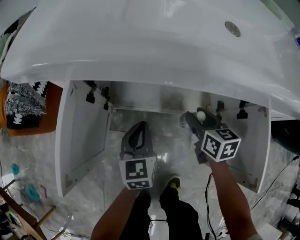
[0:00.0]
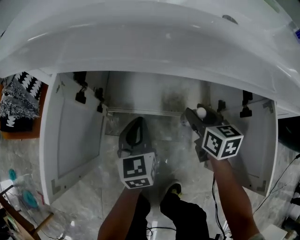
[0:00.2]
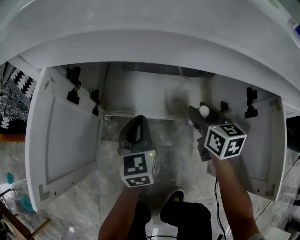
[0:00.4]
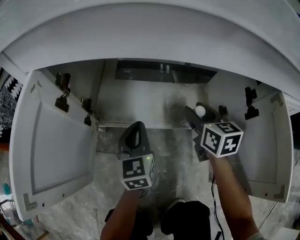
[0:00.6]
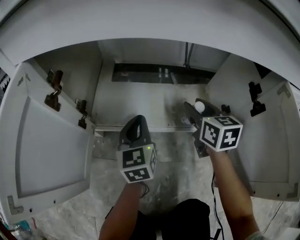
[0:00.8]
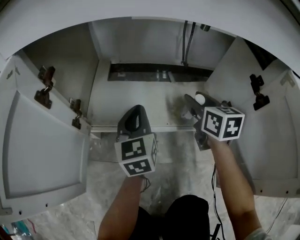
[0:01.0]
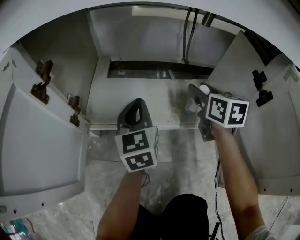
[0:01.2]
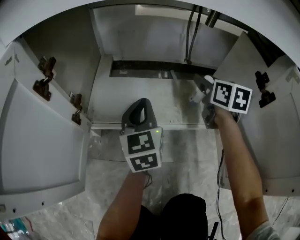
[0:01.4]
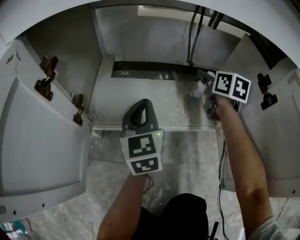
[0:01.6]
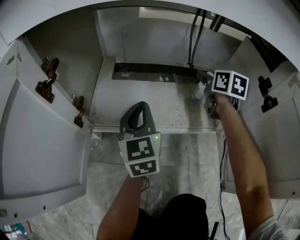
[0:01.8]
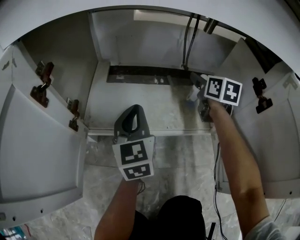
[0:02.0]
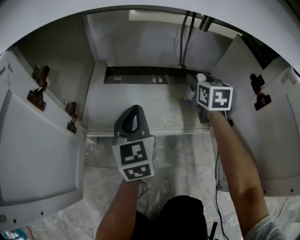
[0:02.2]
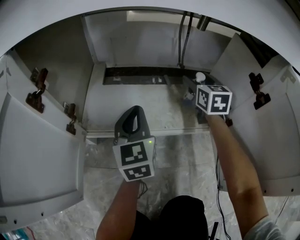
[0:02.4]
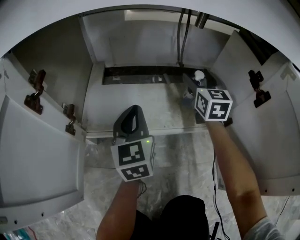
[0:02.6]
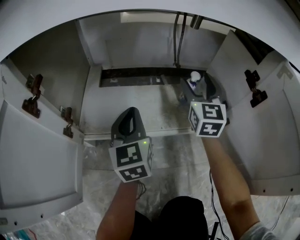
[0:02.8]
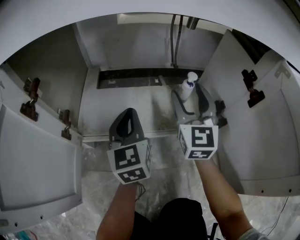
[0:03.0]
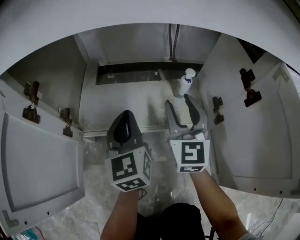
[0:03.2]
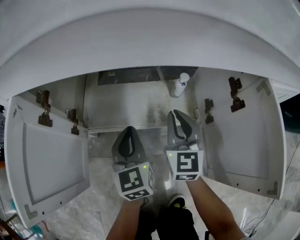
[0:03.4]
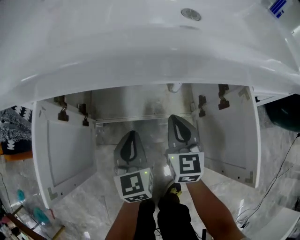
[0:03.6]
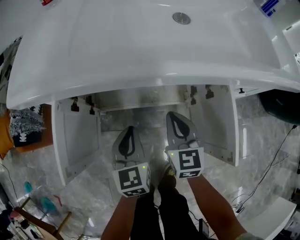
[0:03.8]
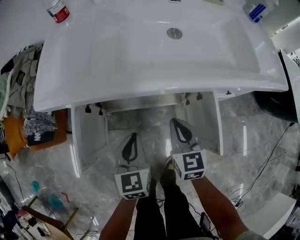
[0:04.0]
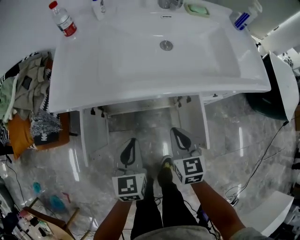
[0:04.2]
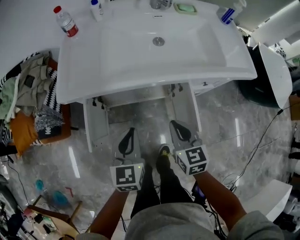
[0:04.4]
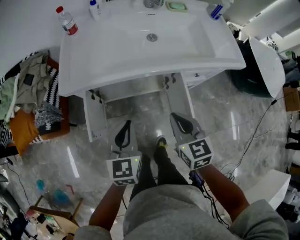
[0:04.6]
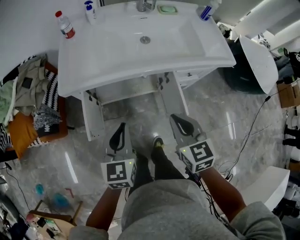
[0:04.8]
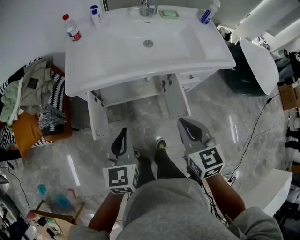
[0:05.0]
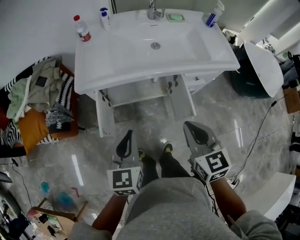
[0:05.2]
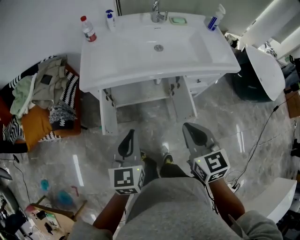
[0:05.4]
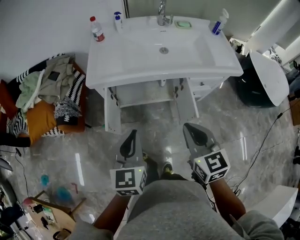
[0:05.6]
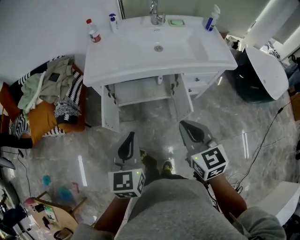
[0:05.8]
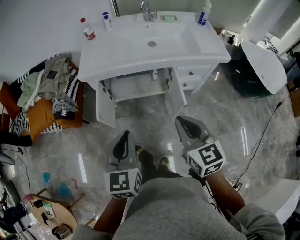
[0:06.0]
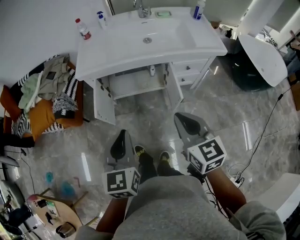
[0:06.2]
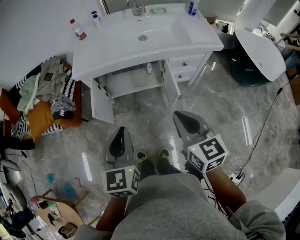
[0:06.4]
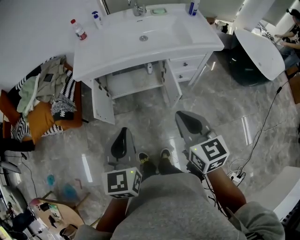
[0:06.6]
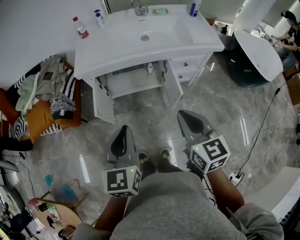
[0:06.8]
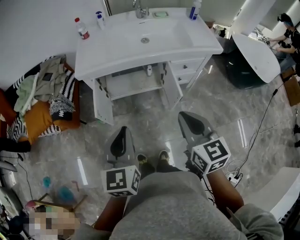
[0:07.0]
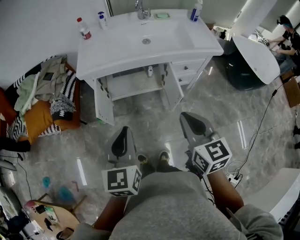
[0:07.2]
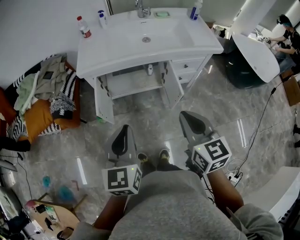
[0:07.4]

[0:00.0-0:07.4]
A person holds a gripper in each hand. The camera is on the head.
0:00.0 to 0:01.4: The right gripper heads forward, to the right and downward, covering some 20 cm; the left gripper shifts roughly 15 cm downward, forward and to the right.
0:01.4 to 0:03.0: The right gripper shifts some 5 cm backward, and rotates roughly 40 degrees.
0:03.0 to 0:04.4: The grippers both shift upward and backward by roughly 50 cm. The right gripper tips its fingers downward by about 30 degrees, and closes up.
0:04.4 to 0:06.0: Both grippers travel together backward and upward, approximately 30 cm.
0:06.0 to 0:07.4: There are only small adjustments of the grippers.

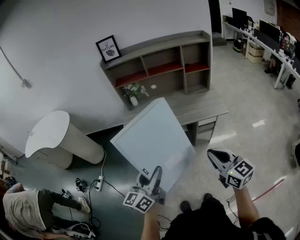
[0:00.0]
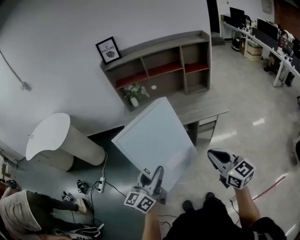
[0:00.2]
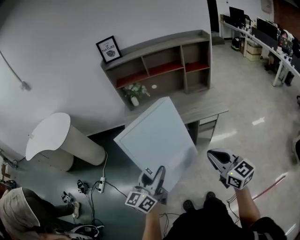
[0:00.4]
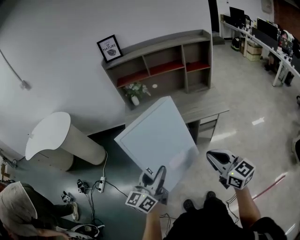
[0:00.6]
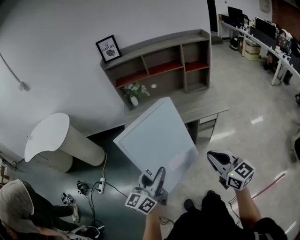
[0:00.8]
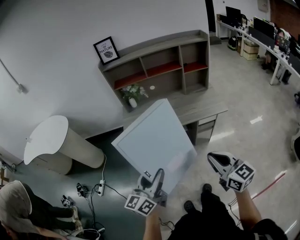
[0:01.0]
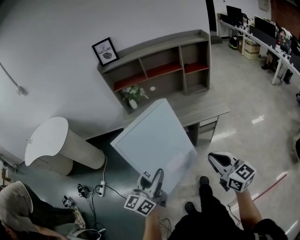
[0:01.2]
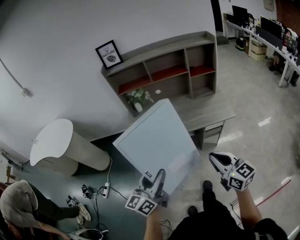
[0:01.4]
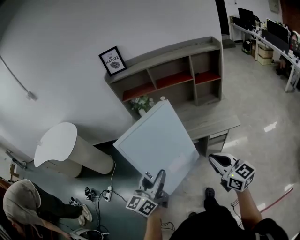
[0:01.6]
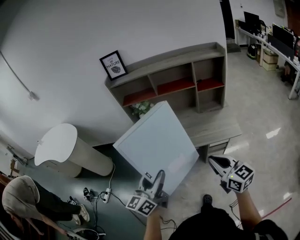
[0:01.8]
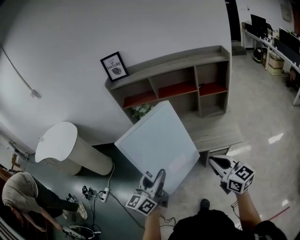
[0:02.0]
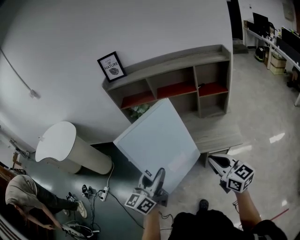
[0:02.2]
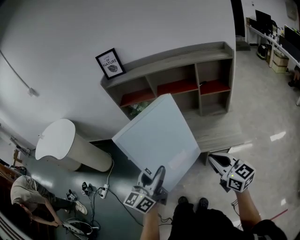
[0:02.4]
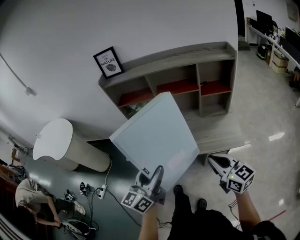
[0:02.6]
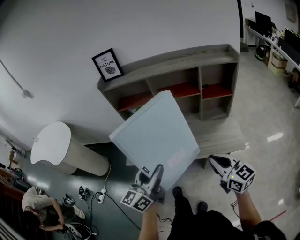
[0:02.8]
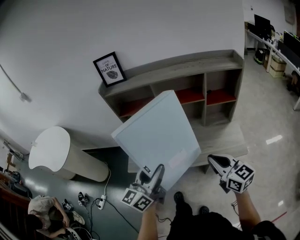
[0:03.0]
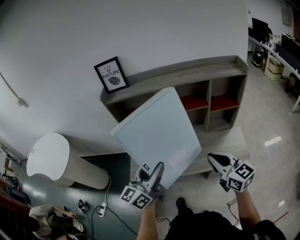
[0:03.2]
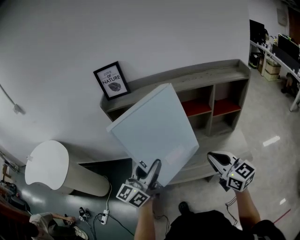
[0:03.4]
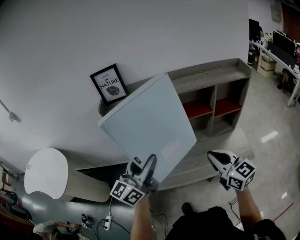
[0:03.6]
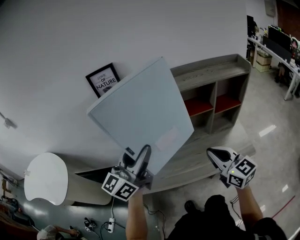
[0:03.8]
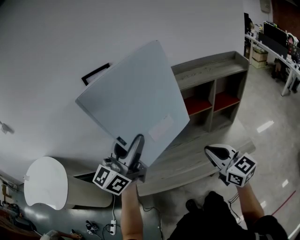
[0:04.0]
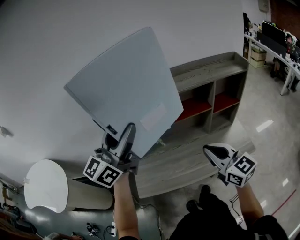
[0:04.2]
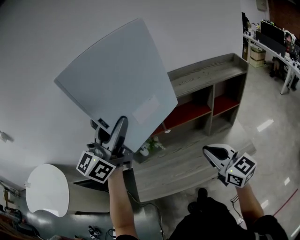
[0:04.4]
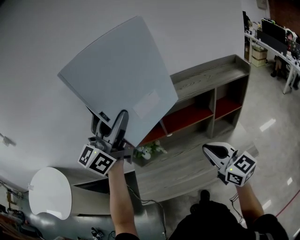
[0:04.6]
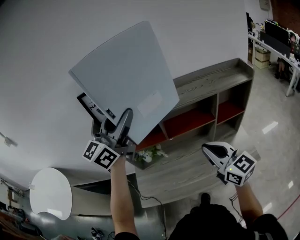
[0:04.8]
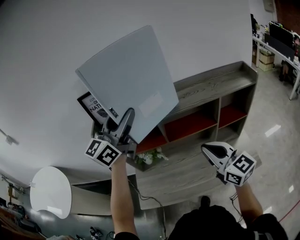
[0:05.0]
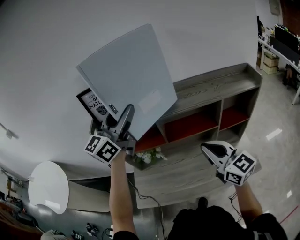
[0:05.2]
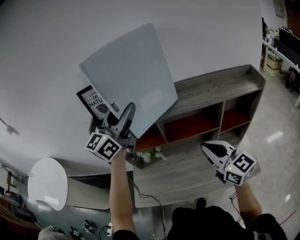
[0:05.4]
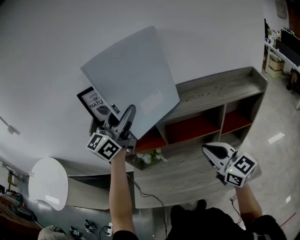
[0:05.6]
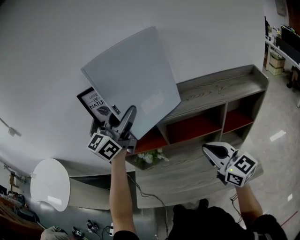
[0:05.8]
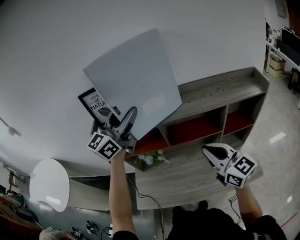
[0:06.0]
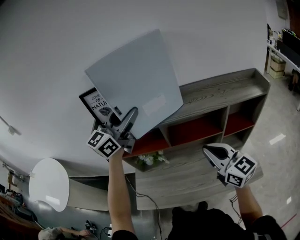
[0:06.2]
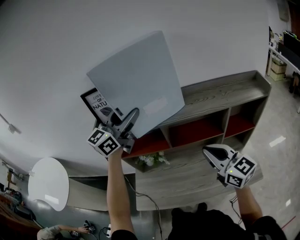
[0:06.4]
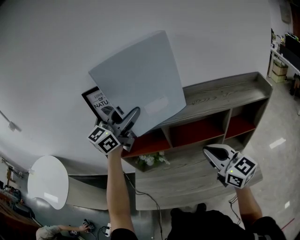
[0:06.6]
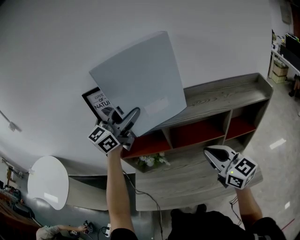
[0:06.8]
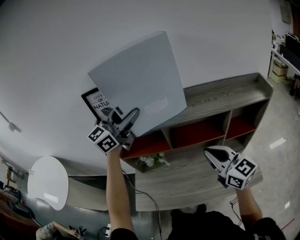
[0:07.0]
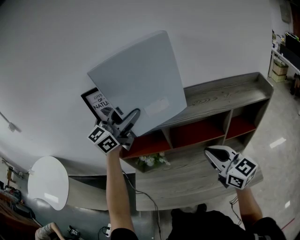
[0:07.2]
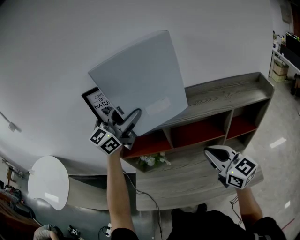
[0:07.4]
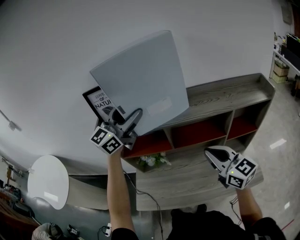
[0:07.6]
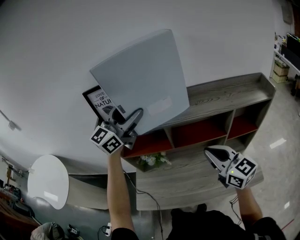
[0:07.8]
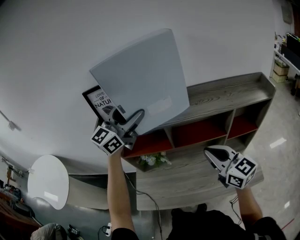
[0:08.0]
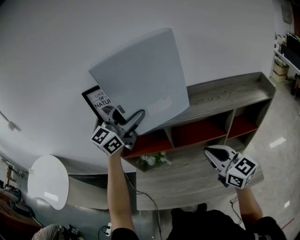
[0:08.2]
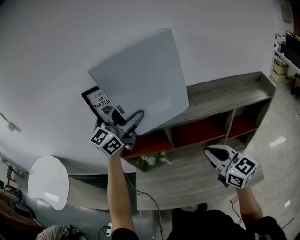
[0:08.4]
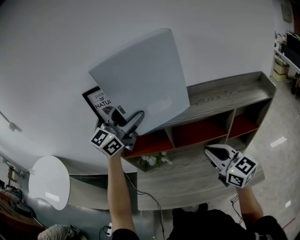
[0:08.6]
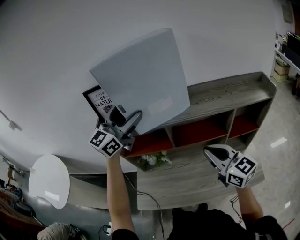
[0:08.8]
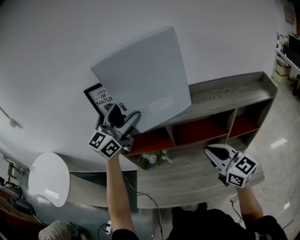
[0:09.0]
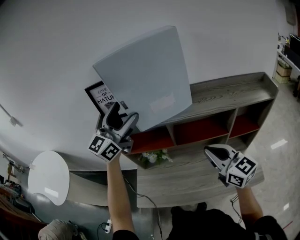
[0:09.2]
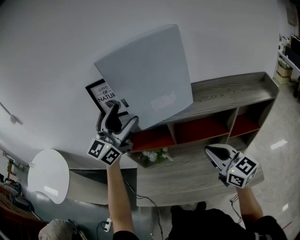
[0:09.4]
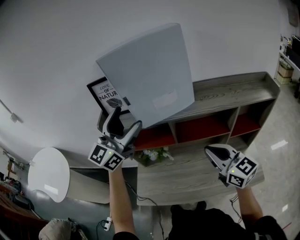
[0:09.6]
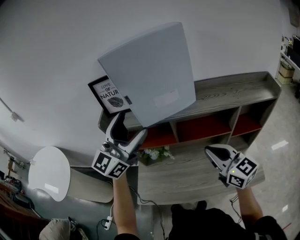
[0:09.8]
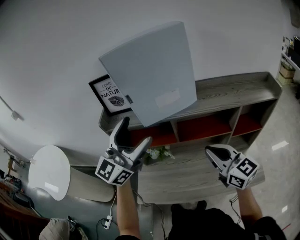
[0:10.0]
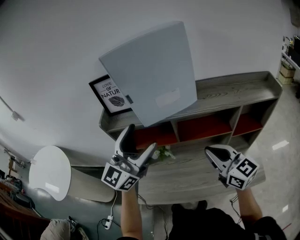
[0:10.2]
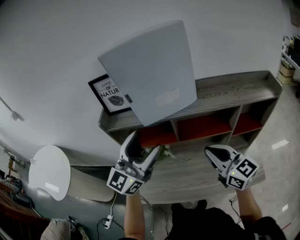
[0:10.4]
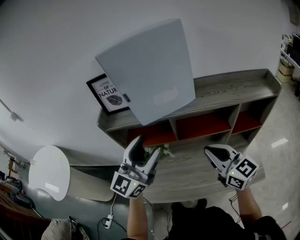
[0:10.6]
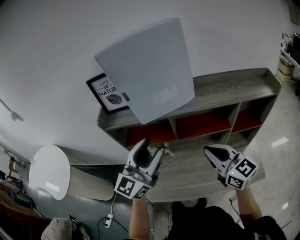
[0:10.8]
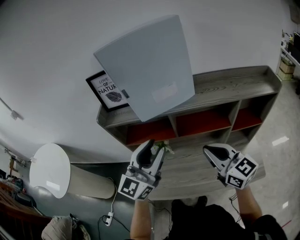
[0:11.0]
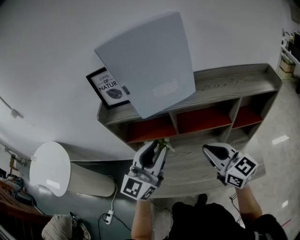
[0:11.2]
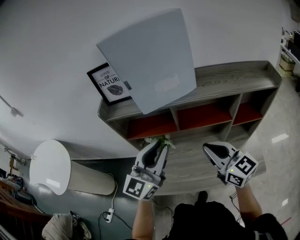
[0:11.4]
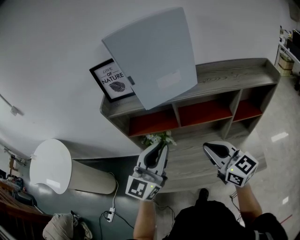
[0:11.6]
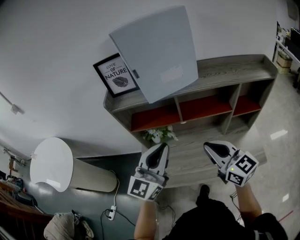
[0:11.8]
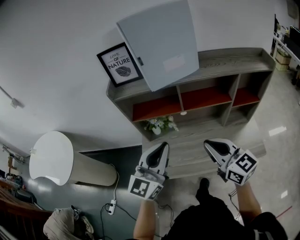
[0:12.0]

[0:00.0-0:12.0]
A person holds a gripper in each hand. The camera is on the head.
0:00.0 to 0:01.6: Both grippers travel together forward, approximately 10 cm.
0:01.6 to 0:03.0: Both grippers travel together forward, about 20 cm.
0:03.0 to 0:04.4: The left gripper travels forward, upward and to the left by about 35 cm, and changes its angle by approximately 30 degrees. Meanwhile the right gripper is displaced forward, to the left and upward by about 20 cm.
0:04.4 to 0:06.0: Both grippers travel together forward, roughly 15 cm.
0:06.0 to 0:09.0: There are only small adjustments of the grippers.
0:09.0 to 0:10.4: The left gripper travels backward and downward by roughly 15 cm.
0:10.4 to 0:12.0: The right gripper moves backward and to the left, roughly 15 cm, while the left gripper heads backward and downward, covering approximately 15 cm, and closes.

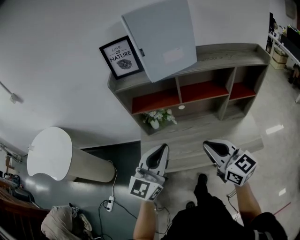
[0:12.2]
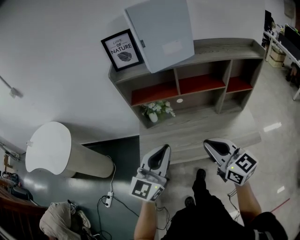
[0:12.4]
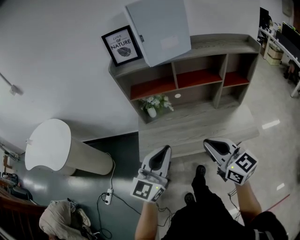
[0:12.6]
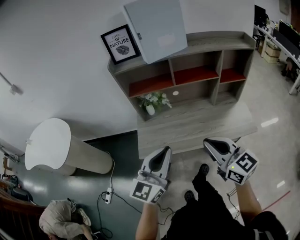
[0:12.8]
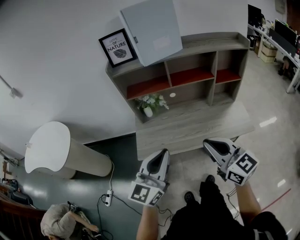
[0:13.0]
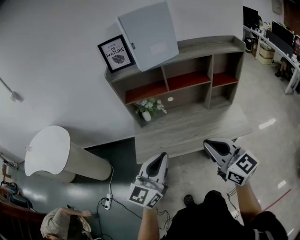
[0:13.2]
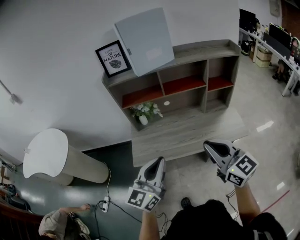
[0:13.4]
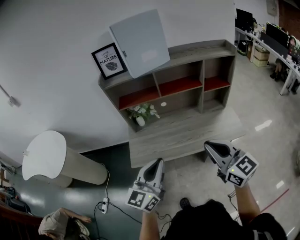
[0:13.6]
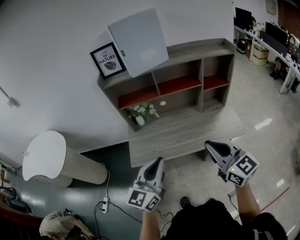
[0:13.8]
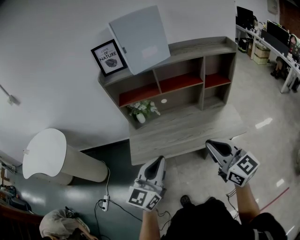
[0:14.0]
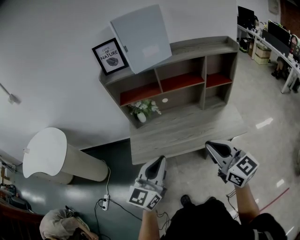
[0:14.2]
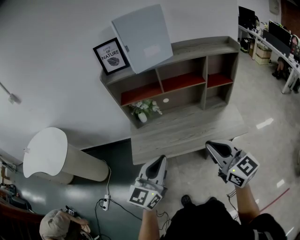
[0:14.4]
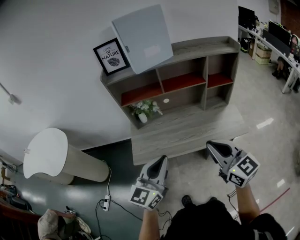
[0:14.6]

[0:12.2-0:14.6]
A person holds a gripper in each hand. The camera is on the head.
0:12.2 to 0:13.4: The grippers both shift backward by about 15 cm.
0:13.4 to 0:14.6: There are only small adjustments of the grippers.

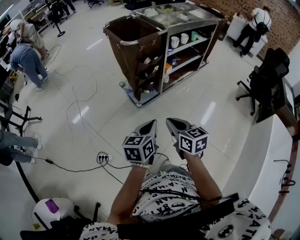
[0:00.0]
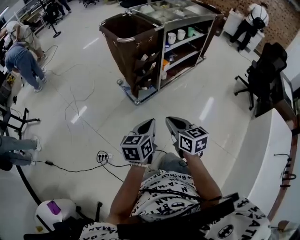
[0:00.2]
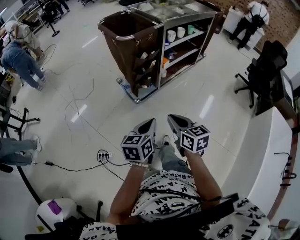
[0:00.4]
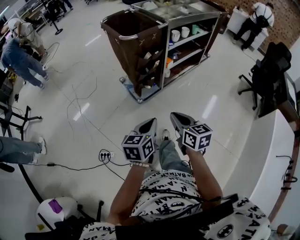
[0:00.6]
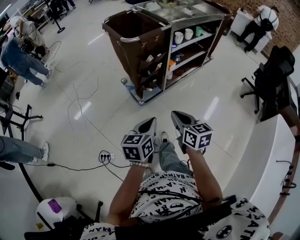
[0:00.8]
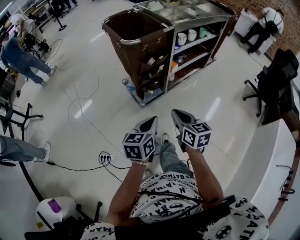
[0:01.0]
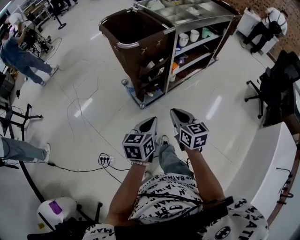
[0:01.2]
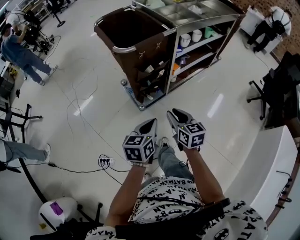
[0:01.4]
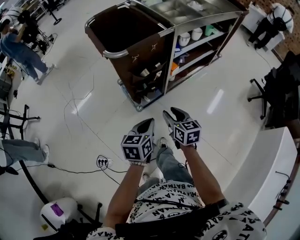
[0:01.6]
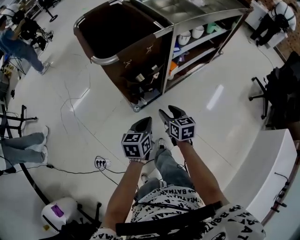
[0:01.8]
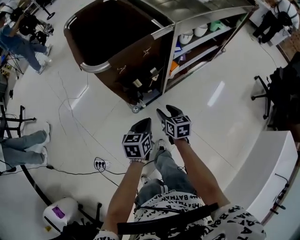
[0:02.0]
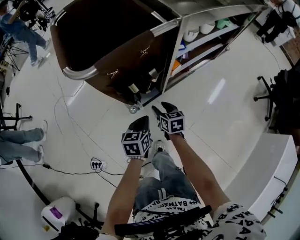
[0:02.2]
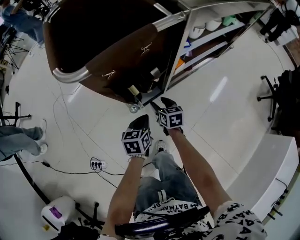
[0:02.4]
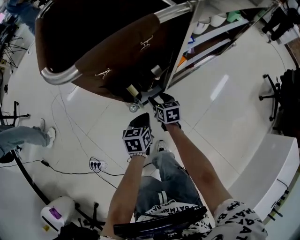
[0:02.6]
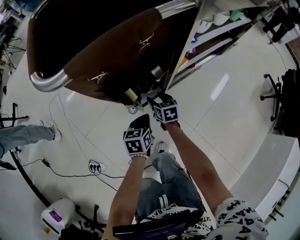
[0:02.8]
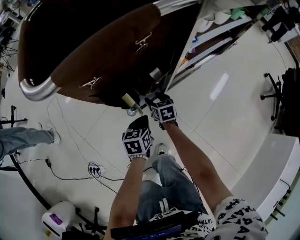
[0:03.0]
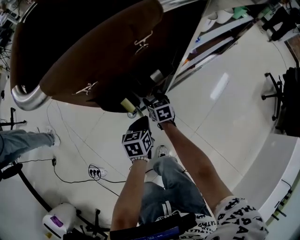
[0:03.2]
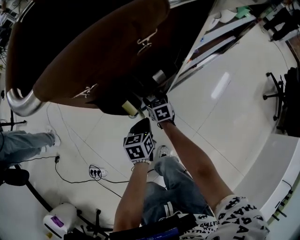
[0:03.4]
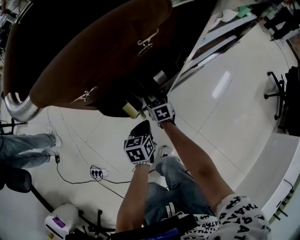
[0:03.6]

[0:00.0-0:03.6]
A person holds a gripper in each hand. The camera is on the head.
0:00.0 to 0:01.8: The grippers both shift forward and downward by some 35 cm. The right gripper opens up.
0:01.8 to 0:03.6: The two grippers go some 35 cm downward and forward.
